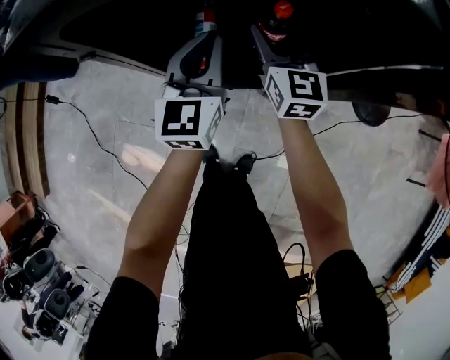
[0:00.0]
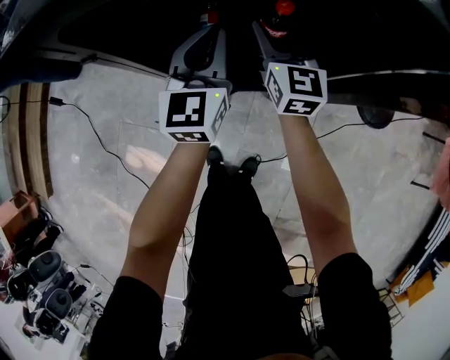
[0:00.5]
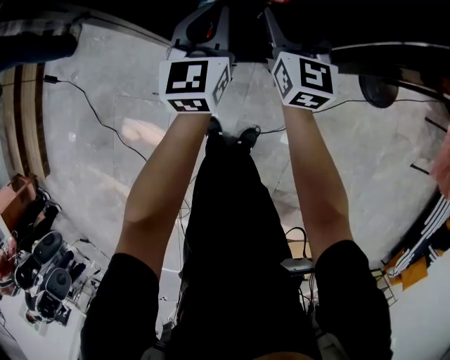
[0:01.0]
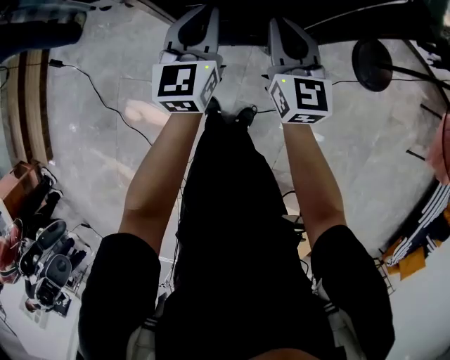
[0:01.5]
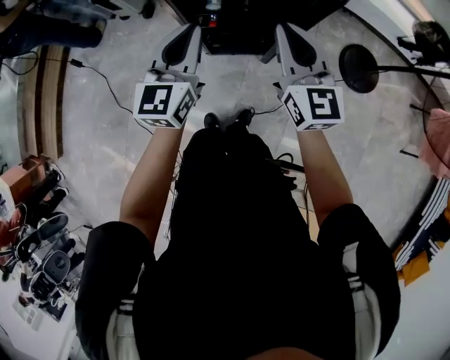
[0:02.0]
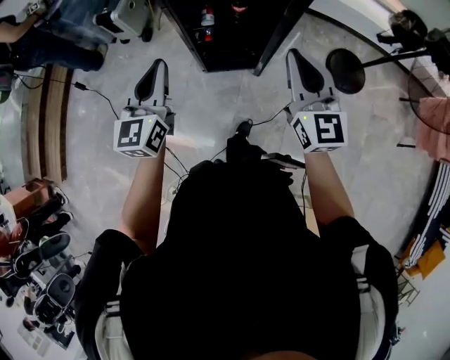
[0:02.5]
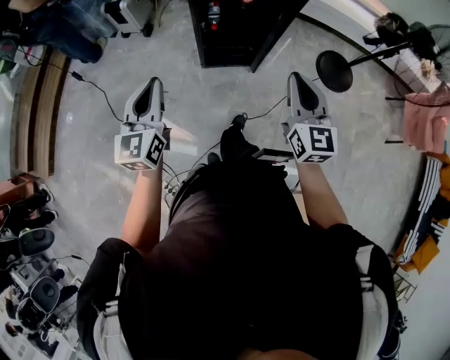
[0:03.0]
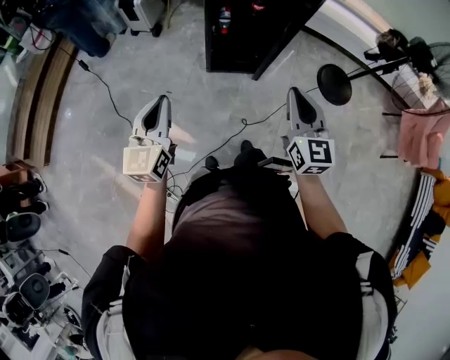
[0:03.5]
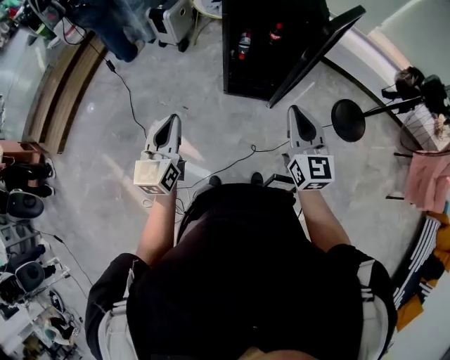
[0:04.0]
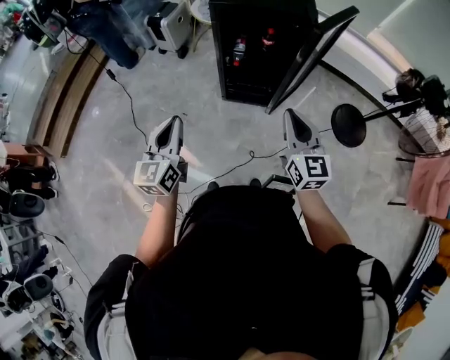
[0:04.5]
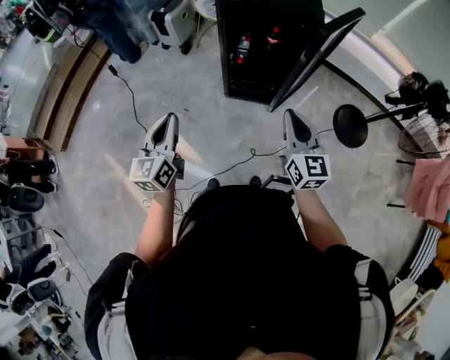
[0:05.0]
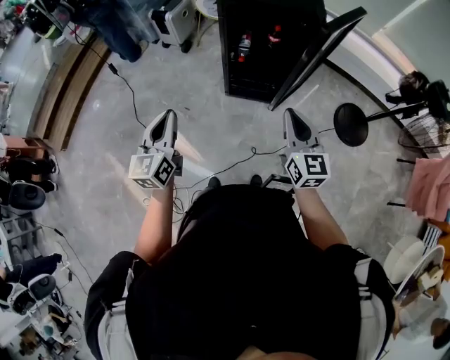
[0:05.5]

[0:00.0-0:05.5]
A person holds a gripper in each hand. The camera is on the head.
0:00.0 to 0:02.0: The two grippers go roughly 35 cm upward and backward. The right gripper closes.
0:02.0 to 0:03.5: The left gripper travels backward and to the left by approximately 40 cm. The right gripper goes some 30 cm backward.
0:03.5 to 0:05.5: The right gripper goes some 10 cm to the right and forward. The left gripper travels to the right by about 5 cm.

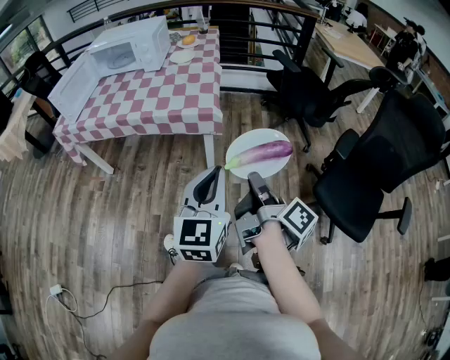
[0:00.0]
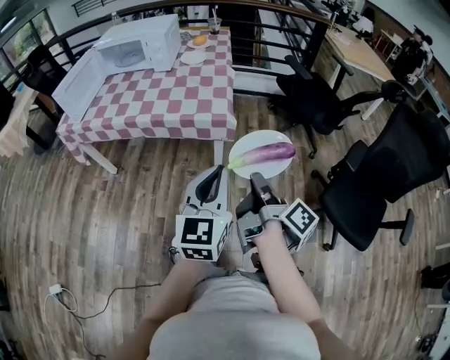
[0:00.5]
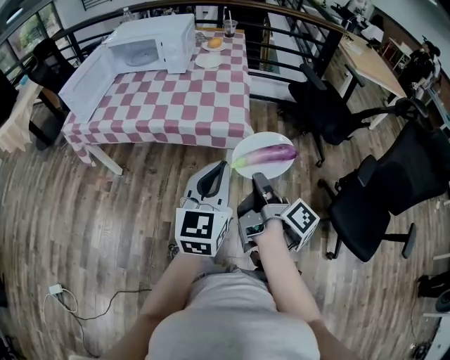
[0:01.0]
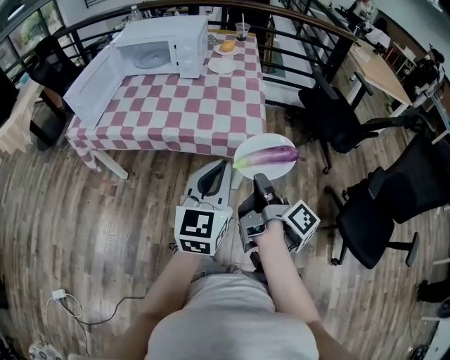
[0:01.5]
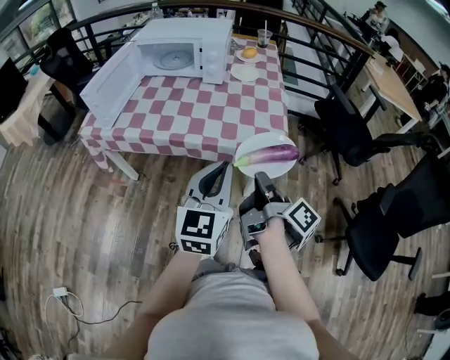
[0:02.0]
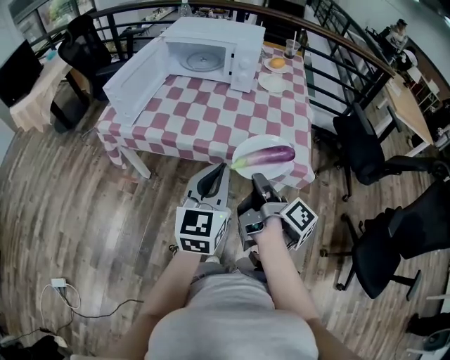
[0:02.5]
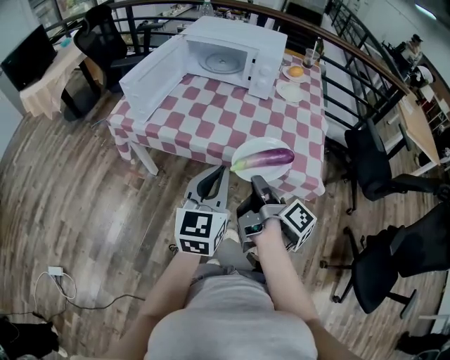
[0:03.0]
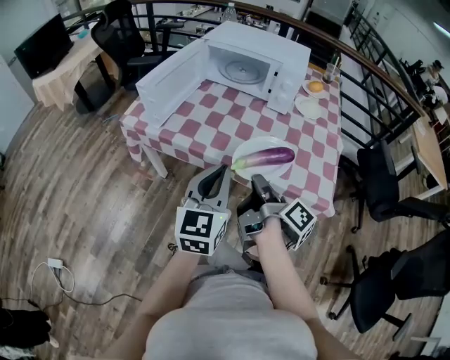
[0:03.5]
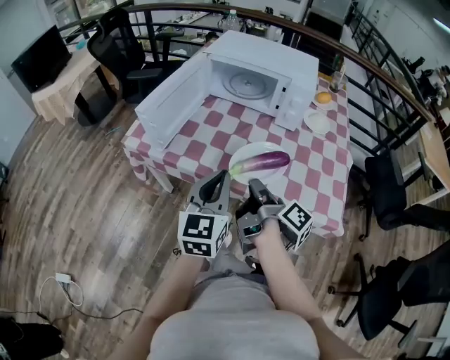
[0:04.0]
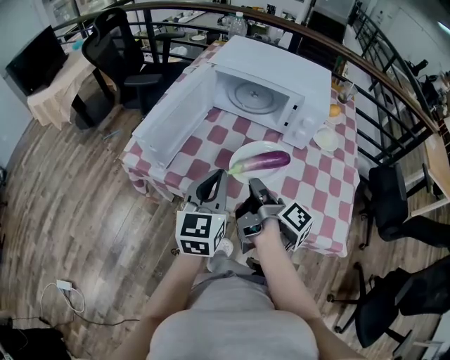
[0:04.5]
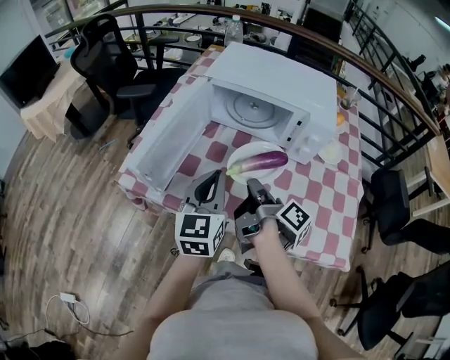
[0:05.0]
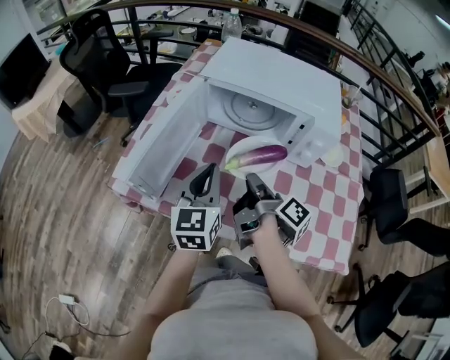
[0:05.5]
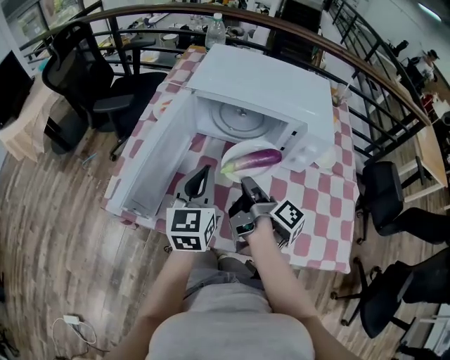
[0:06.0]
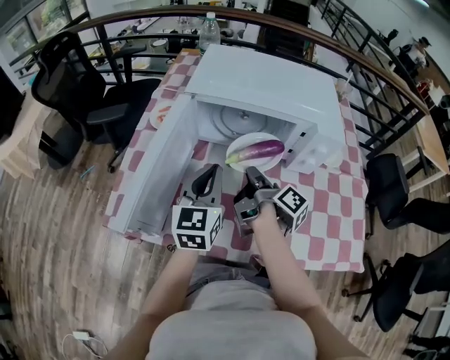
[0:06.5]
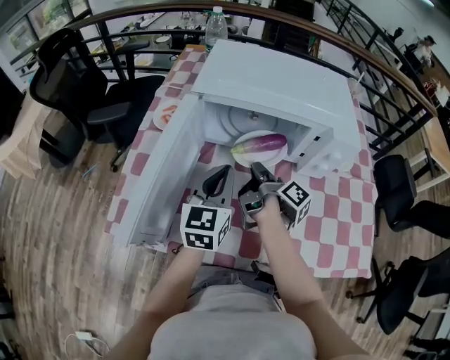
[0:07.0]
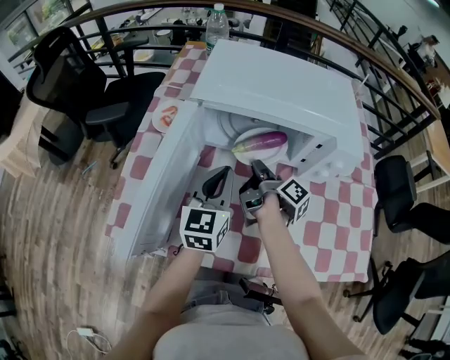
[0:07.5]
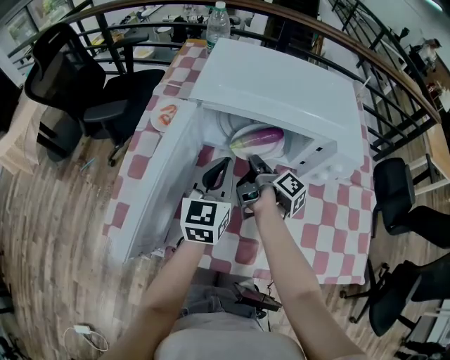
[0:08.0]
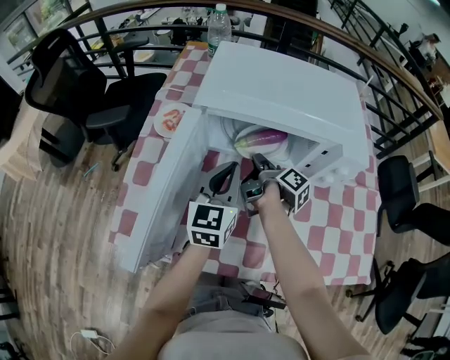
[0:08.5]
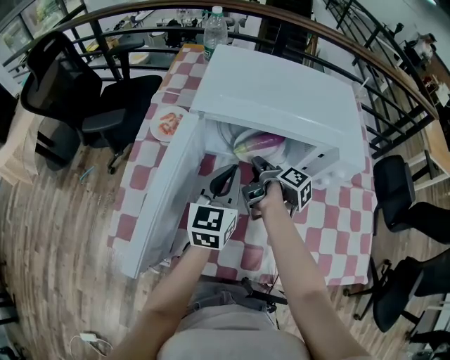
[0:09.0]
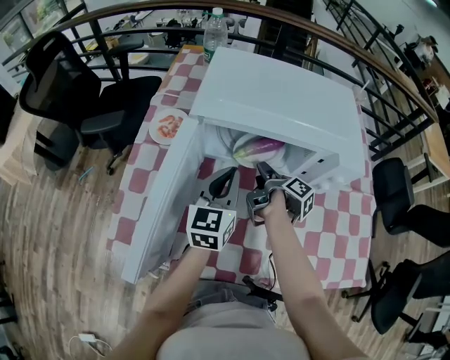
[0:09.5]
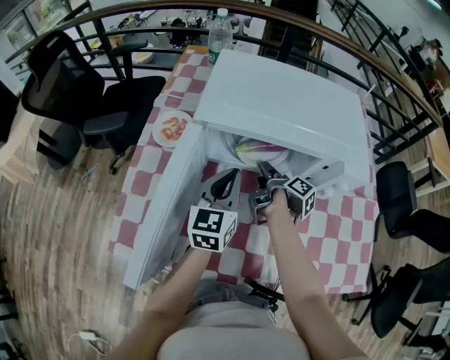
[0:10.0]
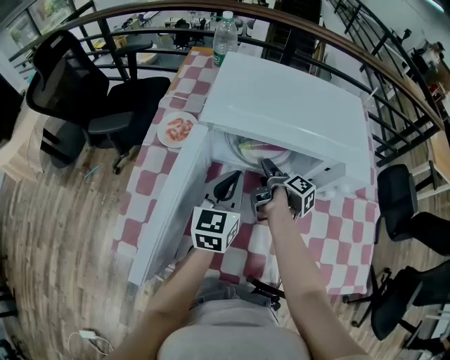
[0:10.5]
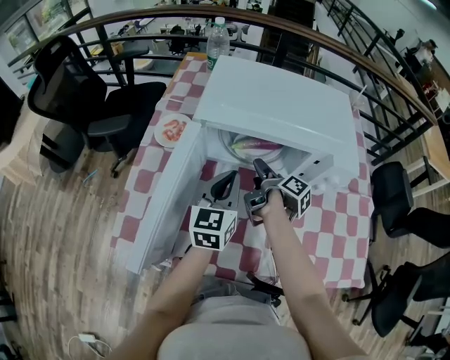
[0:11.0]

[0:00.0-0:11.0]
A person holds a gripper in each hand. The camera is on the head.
0:00.0 to 0:02.0: The left gripper ends up about 30 cm from where it was.
0:02.0 to 0:03.5: The left gripper changes place by roughly 20 cm.
0:03.5 to 0:05.5: The left gripper moves some 35 cm.
0:05.5 to 0:07.5: The left gripper moves some 15 cm.

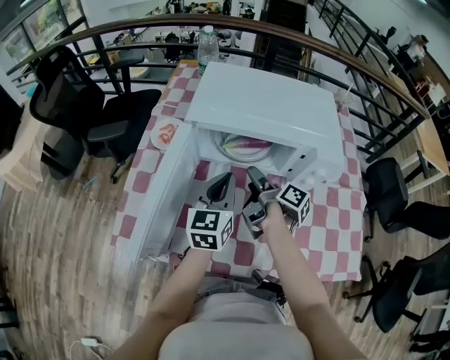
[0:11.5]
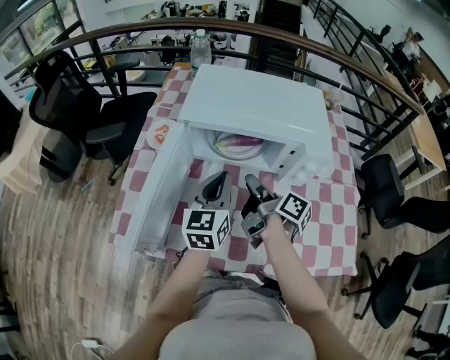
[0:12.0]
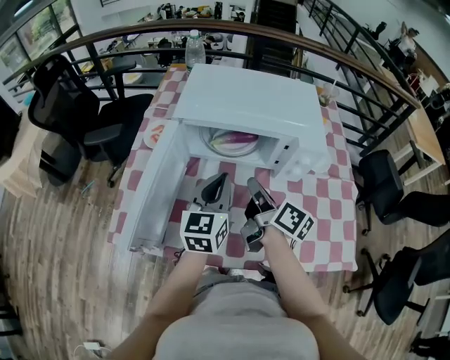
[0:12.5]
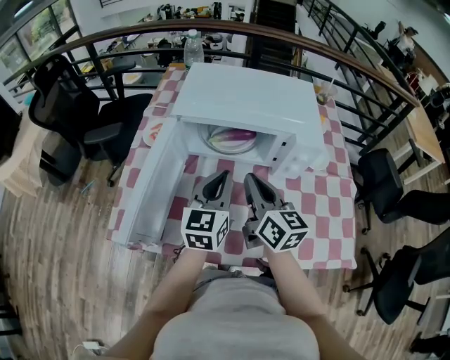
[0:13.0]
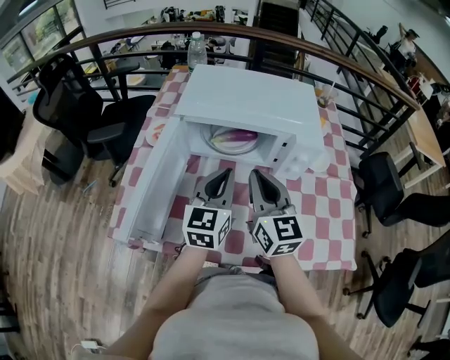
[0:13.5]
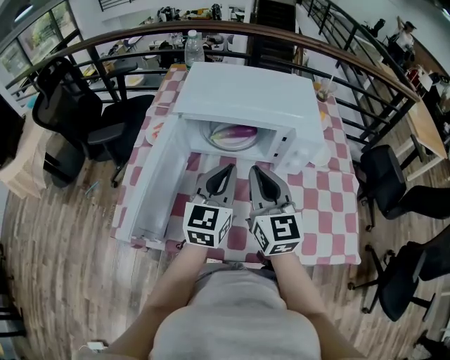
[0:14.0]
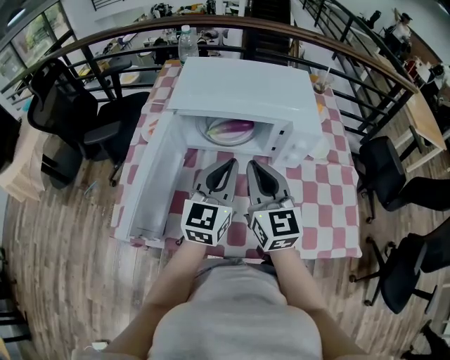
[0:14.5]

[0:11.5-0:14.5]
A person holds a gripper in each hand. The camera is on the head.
0:11.5 to 0:13.0: The left gripper changes place by approximately 5 cm.

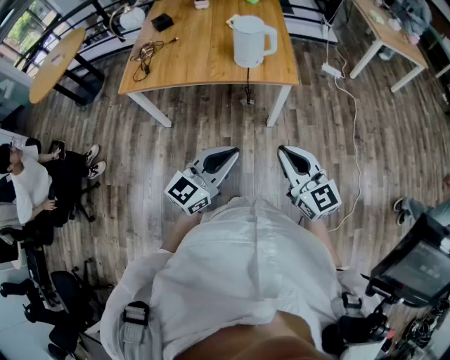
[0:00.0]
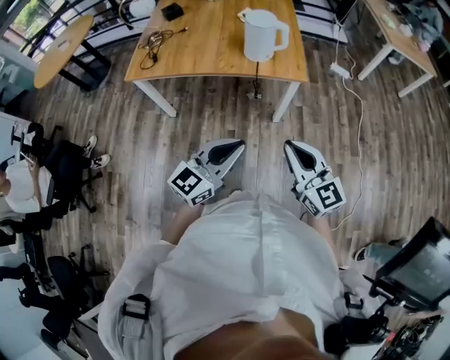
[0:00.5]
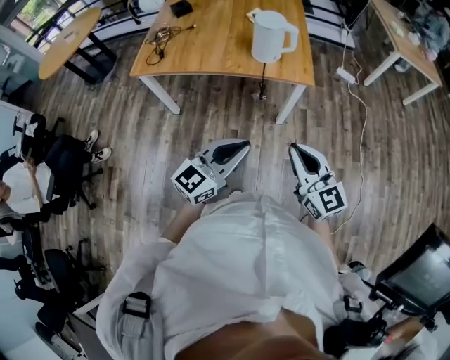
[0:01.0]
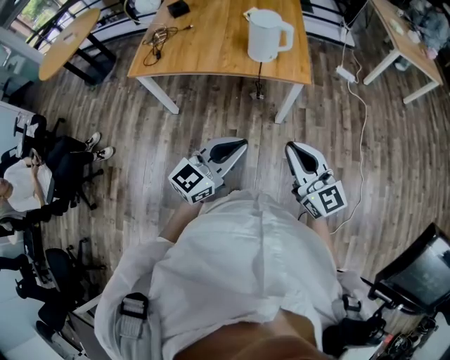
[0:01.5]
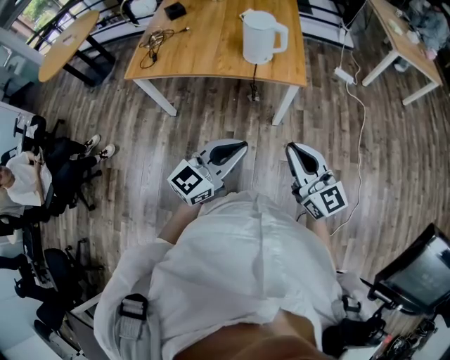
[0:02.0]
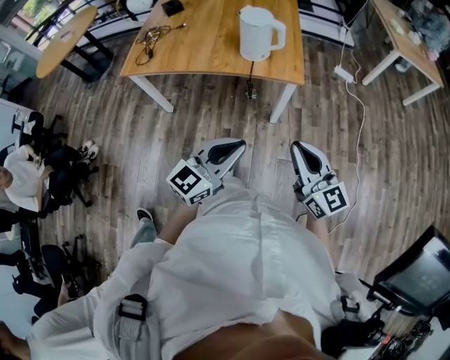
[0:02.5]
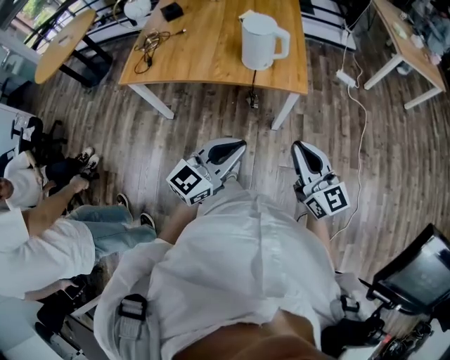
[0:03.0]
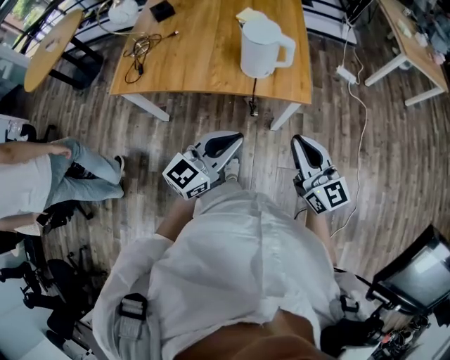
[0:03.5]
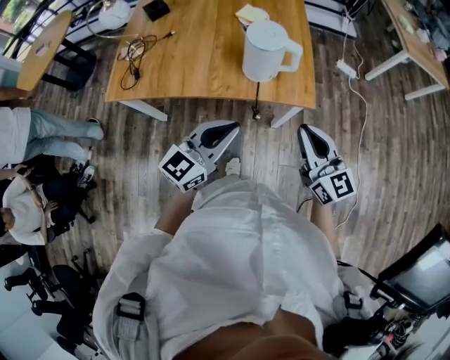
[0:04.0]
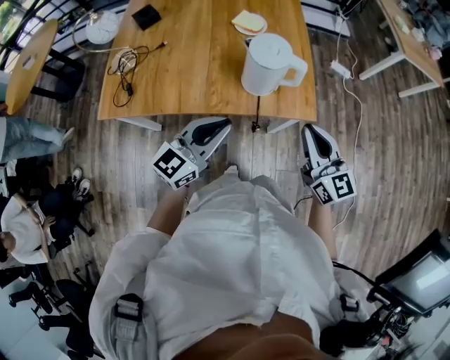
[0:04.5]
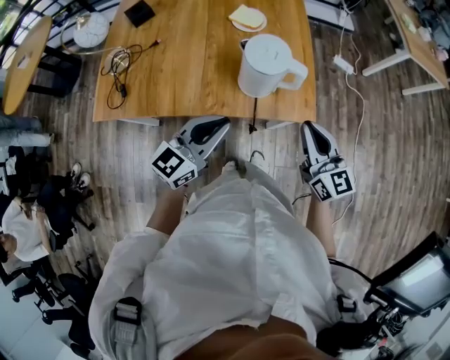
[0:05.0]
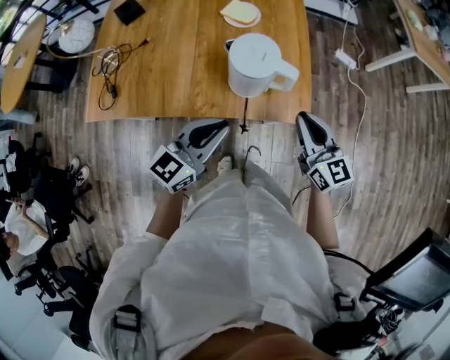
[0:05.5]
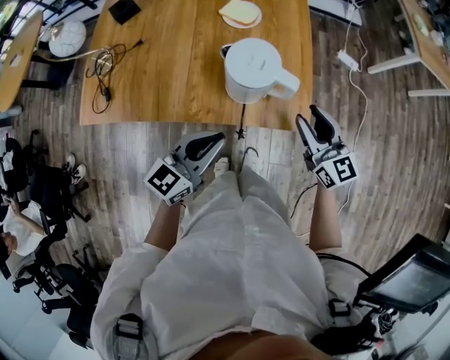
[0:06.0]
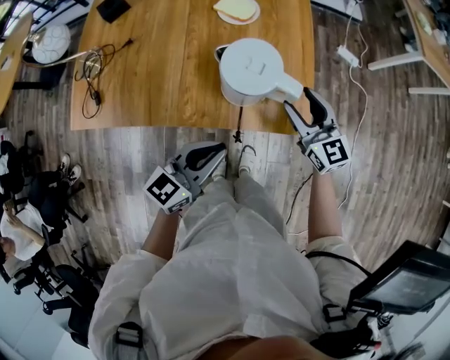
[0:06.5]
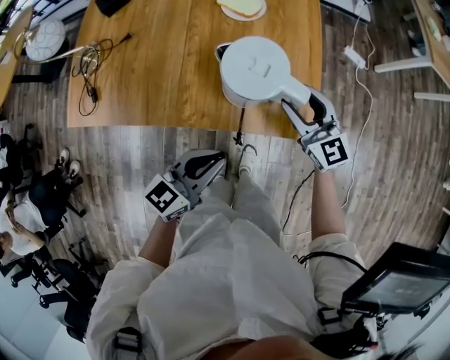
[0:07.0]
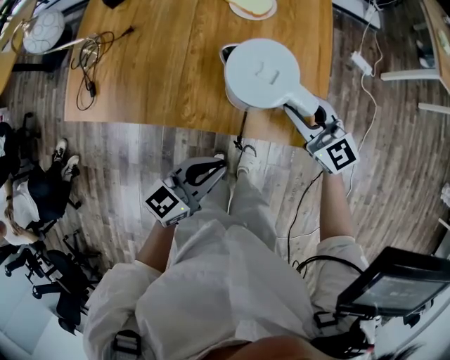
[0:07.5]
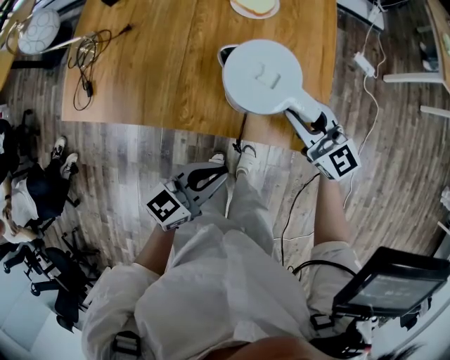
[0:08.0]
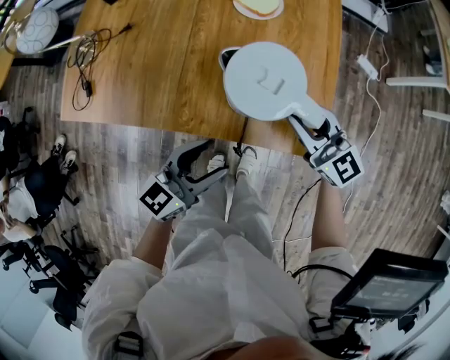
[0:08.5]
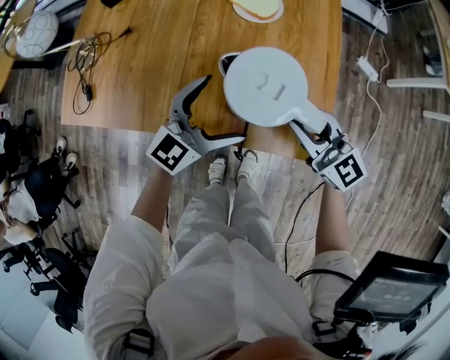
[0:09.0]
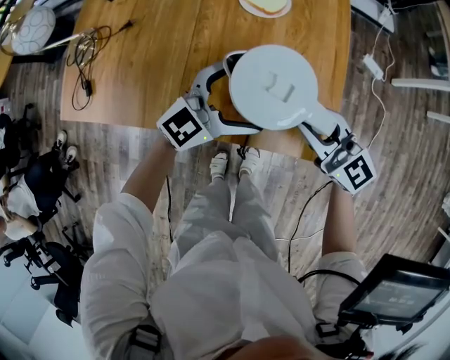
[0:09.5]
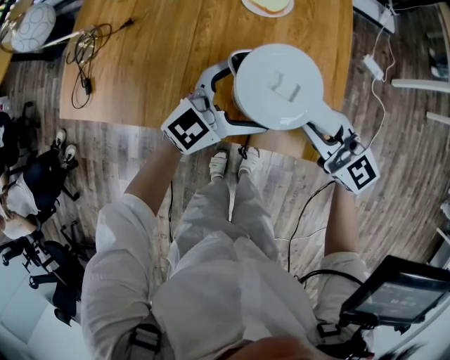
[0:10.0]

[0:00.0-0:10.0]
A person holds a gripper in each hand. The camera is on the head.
0:00.0 to 0:02.0: The grippers make only small movements.
0:02.0 to 0:04.0: The two grippers go some 25 cm forward.
0:04.0 to 0:06.0: The left gripper shifts about 15 cm forward and downward; the right gripper heads forward, covering about 20 cm, and opens up.
0:06.0 to 0:08.0: The left gripper shifts roughly 10 cm downward. The right gripper goes about 10 cm downward, forward and to the left, and turns by approximately 20 degrees.
0:08.0 to 0:10.0: The left gripper shifts approximately 20 cm forward, changes its angle by about 40 degrees, and opens up.
